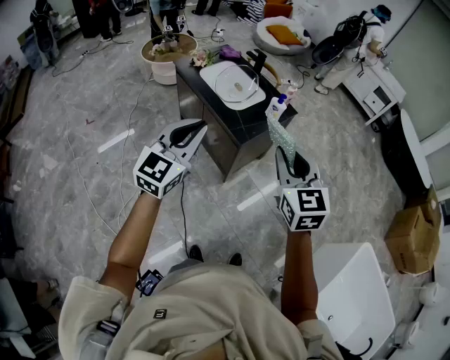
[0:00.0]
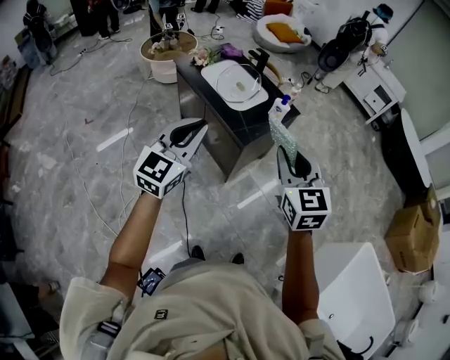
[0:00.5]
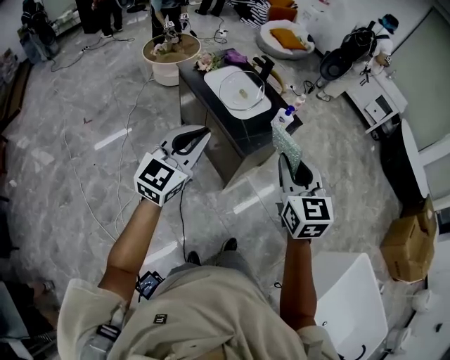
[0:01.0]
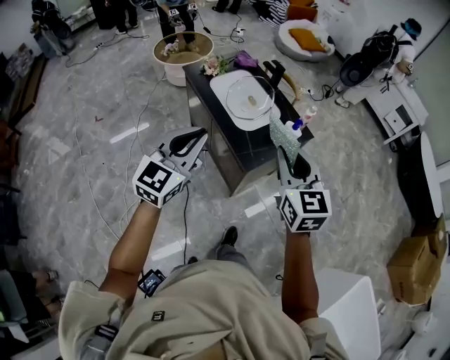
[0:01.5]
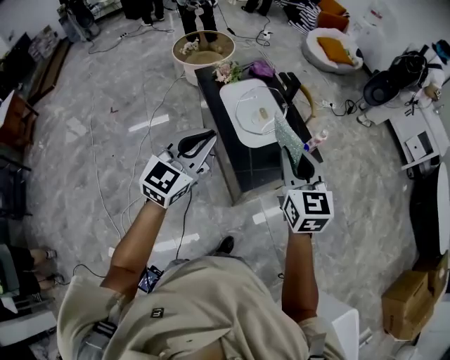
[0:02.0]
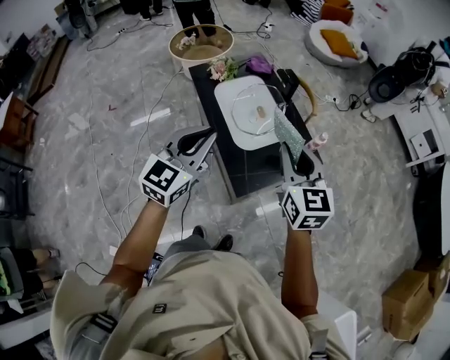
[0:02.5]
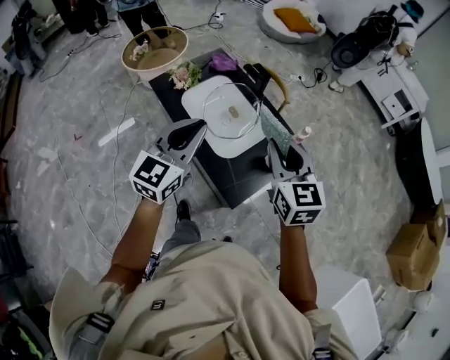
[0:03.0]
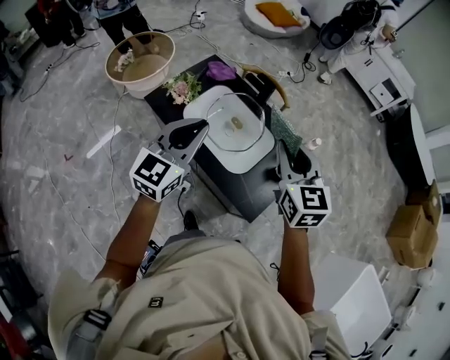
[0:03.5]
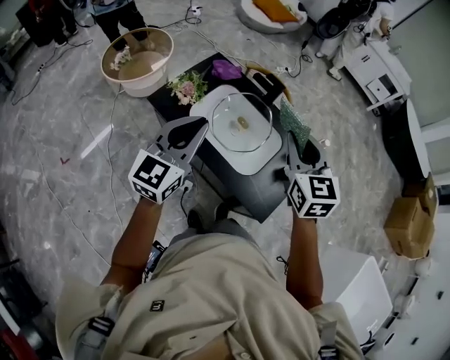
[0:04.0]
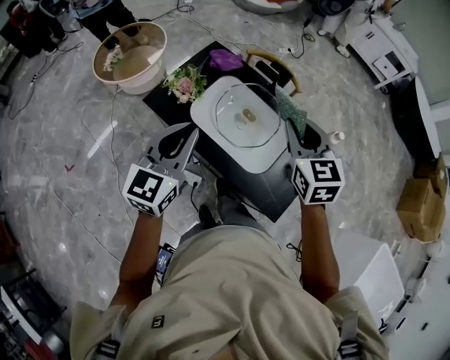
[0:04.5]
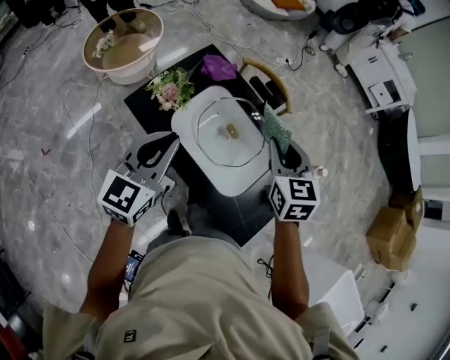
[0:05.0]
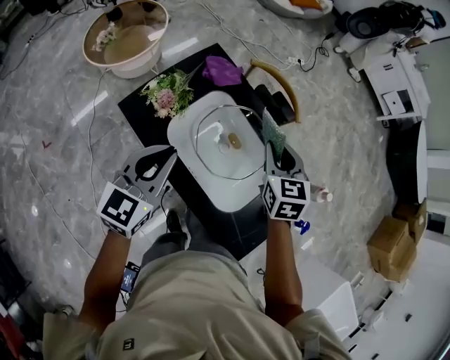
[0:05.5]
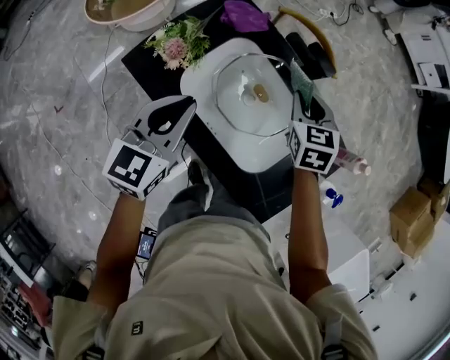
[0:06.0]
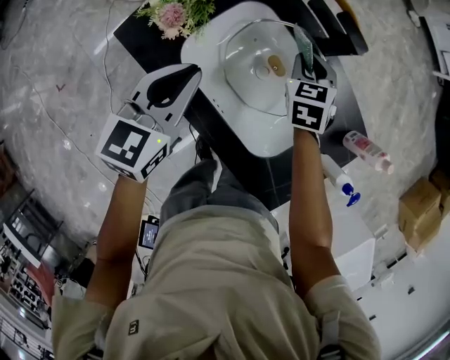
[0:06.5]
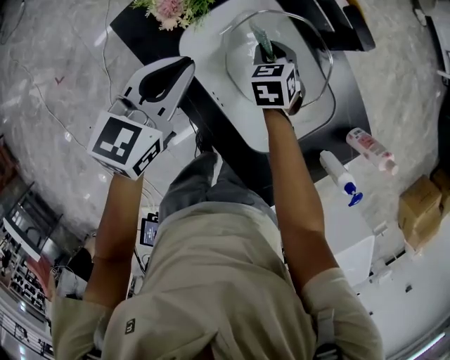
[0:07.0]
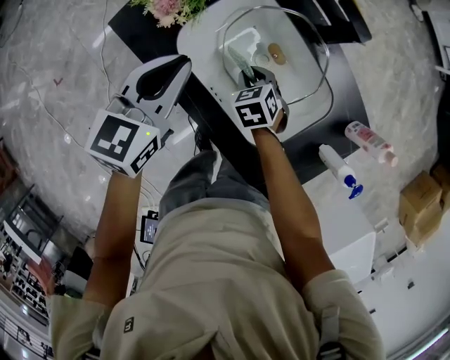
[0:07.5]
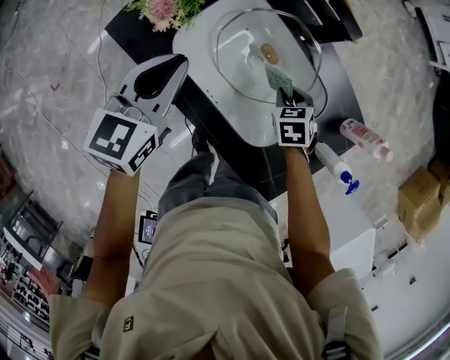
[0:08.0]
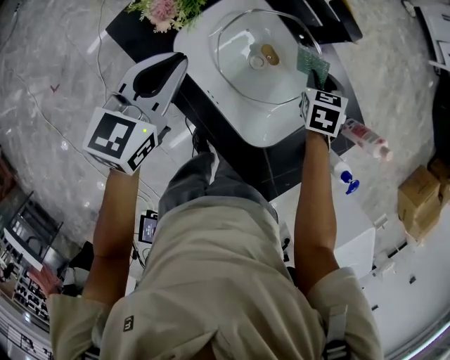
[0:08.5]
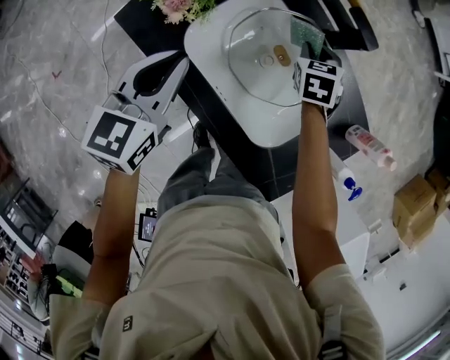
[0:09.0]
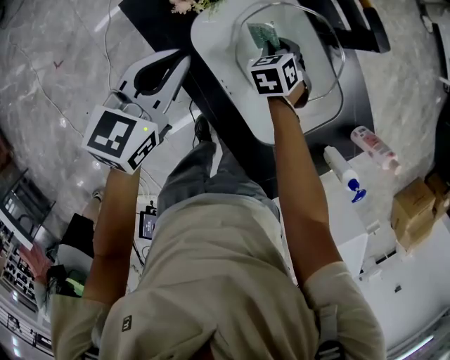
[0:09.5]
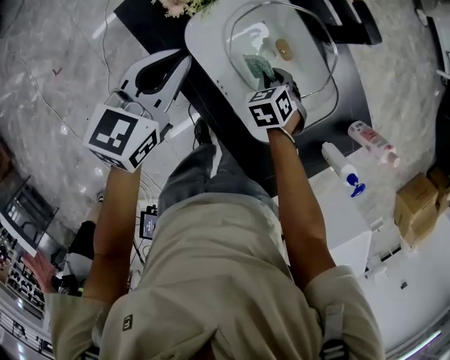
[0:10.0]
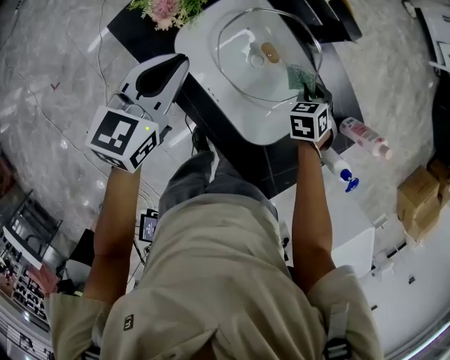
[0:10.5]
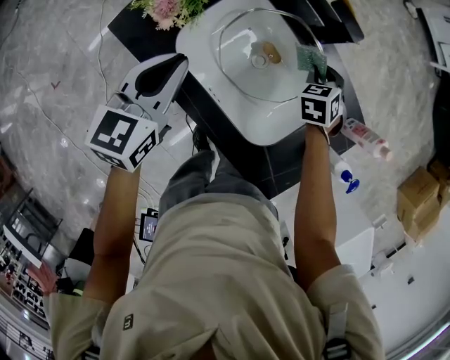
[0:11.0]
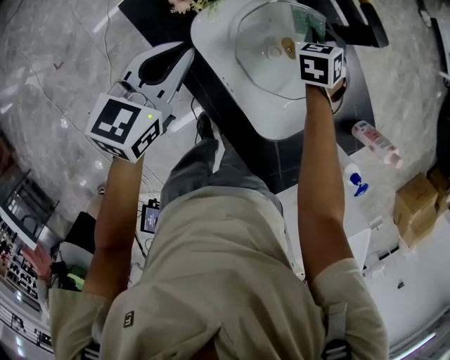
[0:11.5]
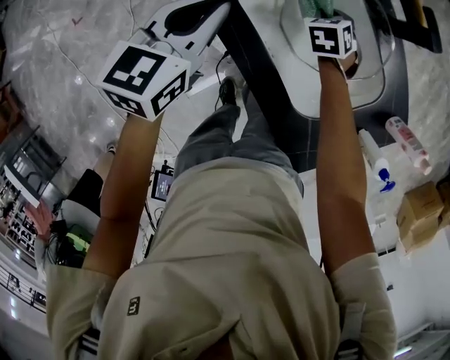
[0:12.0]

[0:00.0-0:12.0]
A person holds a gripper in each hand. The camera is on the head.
0:00.0 to 0:02.0: Both grippers travel together forward, some 30 cm.
0:02.0 to 0:04.0: Both grippers travel together forward and to the left, about 30 cm. The right gripper rotates about 30 degrees, while the left gripper swivels about 20 degrees.
0:04.0 to 0:06.0: Both grippers travel together downward and forward, about 30 cm. The left gripper turns by some 20 degrees; the right gripper rotates approximately 20 degrees.
0:06.0 to 0:08.0: The left gripper is displaced downward by approximately 5 cm, while the right gripper shifts some 20 cm downward and backward, and changes its angle by about 20 degrees.
0:08.0 to 0:10.0: The right gripper swings left and right, approximately 20 cm each way, with 2 reversals.
0:10.0 to 0:12.0: The right gripper moves forward, approximately 10 cm, and moves roughly 15 cm to the right and comes back.

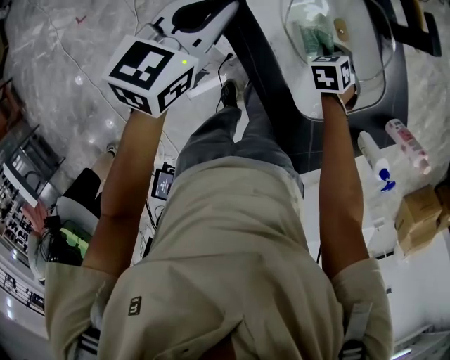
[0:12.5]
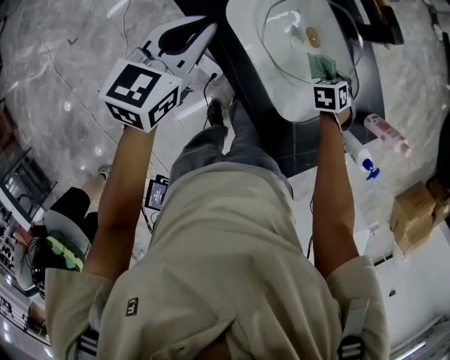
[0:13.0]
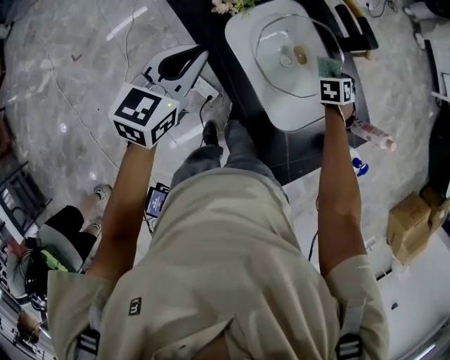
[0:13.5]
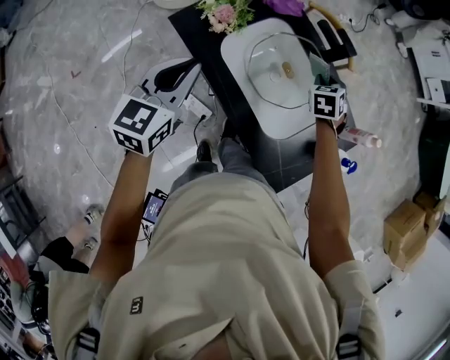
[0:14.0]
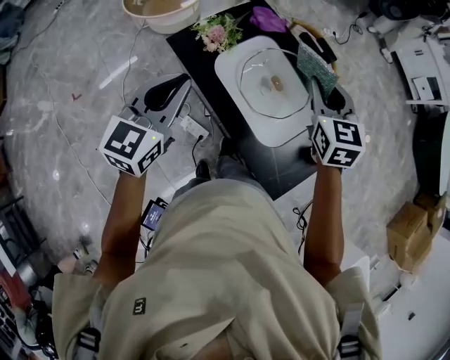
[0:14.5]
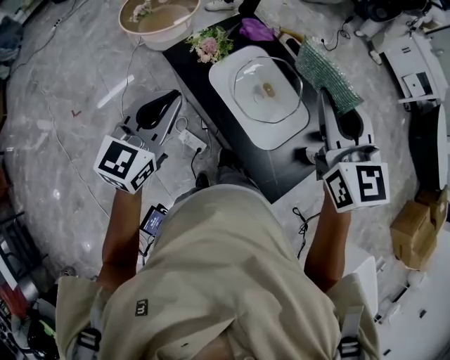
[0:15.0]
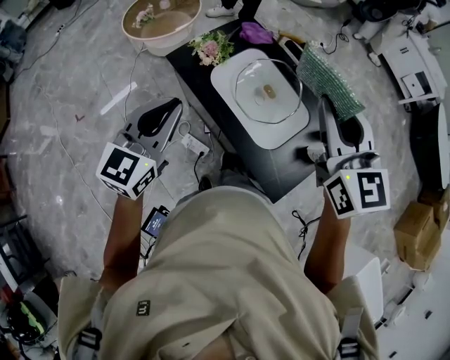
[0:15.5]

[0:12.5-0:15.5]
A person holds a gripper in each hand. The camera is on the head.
0:12.5 to 0:14.0: The right gripper shifts roughly 20 cm upward, and rotates roughly 20 degrees. Meanwhile the left gripper travels upward and backward by about 15 cm.
0:14.0 to 0:15.5: The right gripper is displaced upward and backward by approximately 40 cm, and tips its fingers upward by roughly 40 degrees. The left gripper shifts some 15 cm upward and backward.

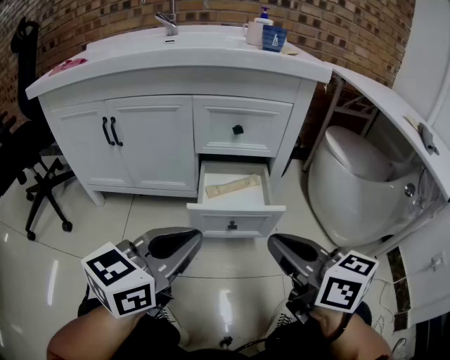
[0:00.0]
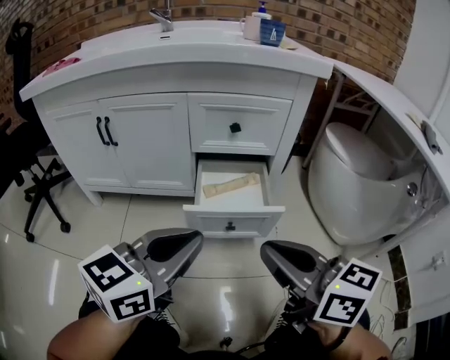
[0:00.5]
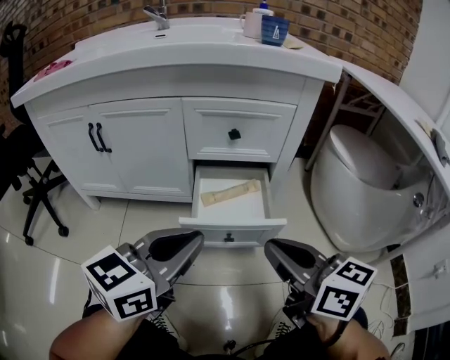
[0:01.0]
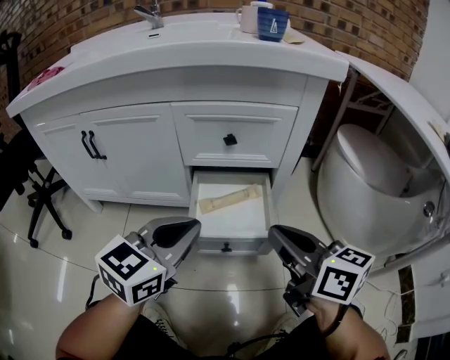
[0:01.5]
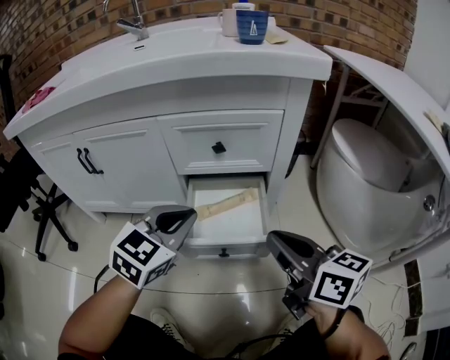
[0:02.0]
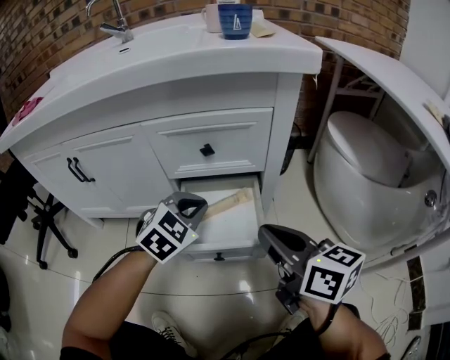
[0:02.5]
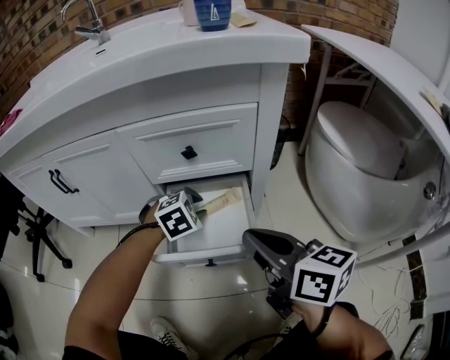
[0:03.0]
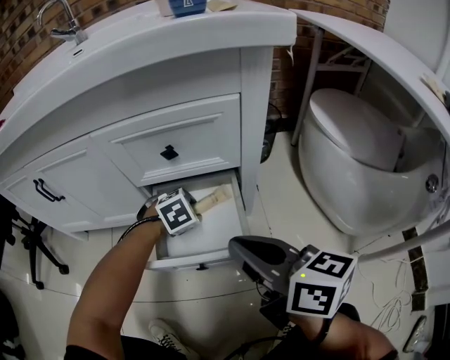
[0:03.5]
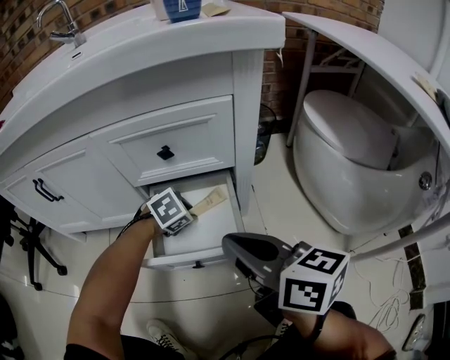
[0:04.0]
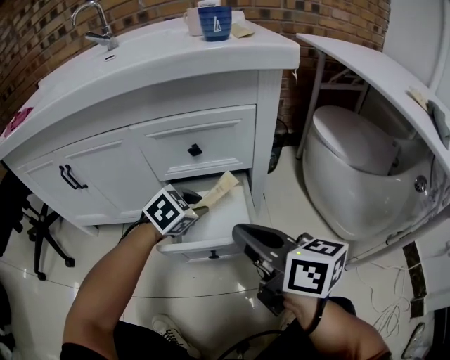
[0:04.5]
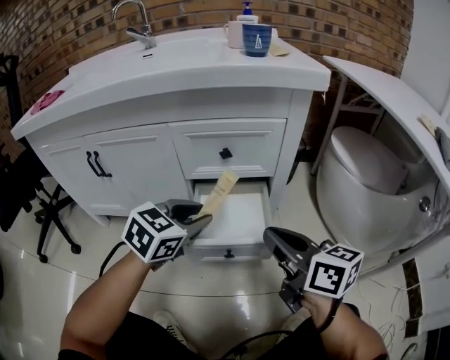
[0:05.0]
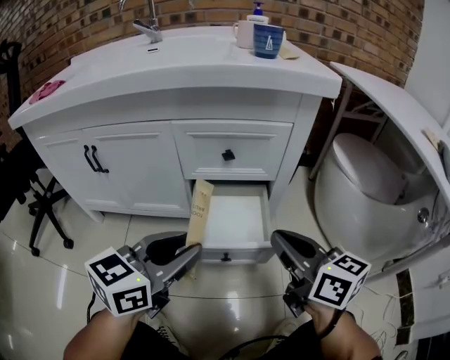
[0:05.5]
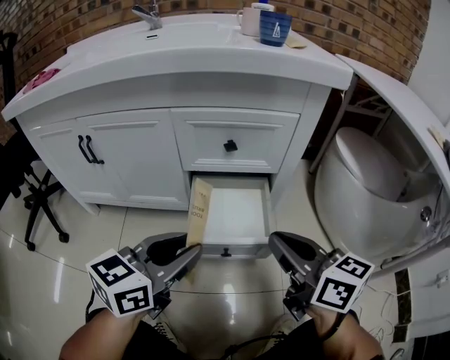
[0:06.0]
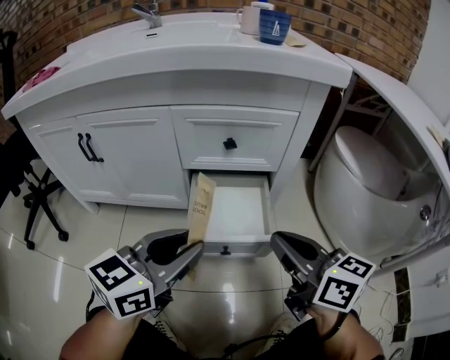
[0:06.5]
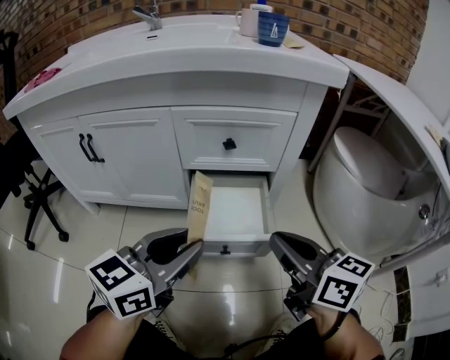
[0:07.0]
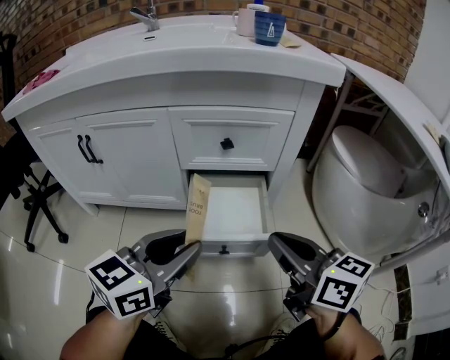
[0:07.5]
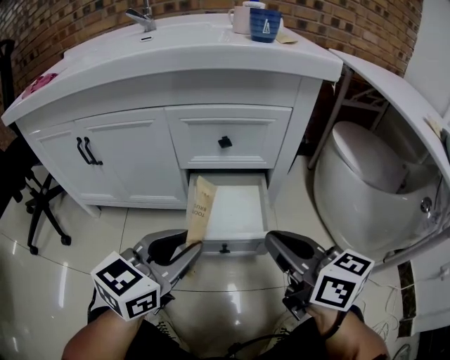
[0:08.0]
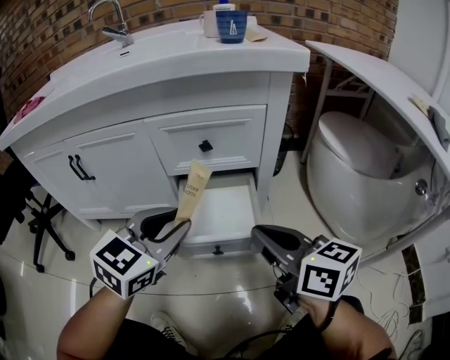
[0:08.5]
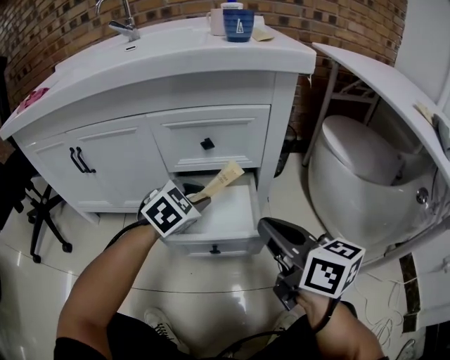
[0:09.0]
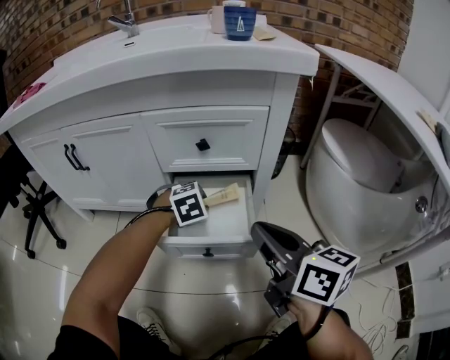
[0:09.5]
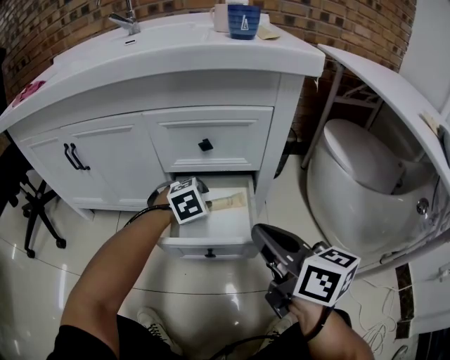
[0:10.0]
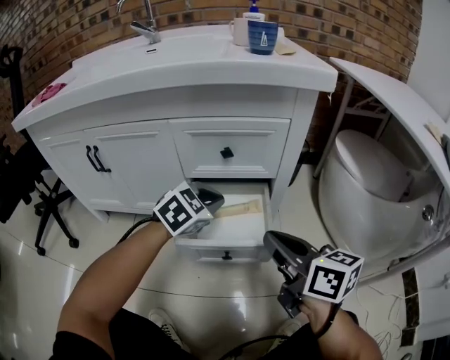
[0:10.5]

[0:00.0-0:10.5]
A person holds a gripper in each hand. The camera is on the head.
0:00.0 to 0:02.0: The right gripper shifts about 15 cm forward and to the right. The left gripper heads forward, covering approximately 20 cm, and swivels roughly 30 degrees.
0:02.0 to 0:04.0: The left gripper goes roughly 25 cm downward and forward, points its fingers approximately 40 degrees further downward, and opens.
0:04.0 to 0:06.5: The left gripper heads upward and backward, covering roughly 30 cm, and tips its fingers upward by roughly 60 degrees.
0:06.5 to 0:08.5: The left gripper swivels roughly 30 degrees.
0:08.5 to 0:10.5: The left gripper heads forward and downward, covering roughly 15 cm, swivels roughly 20 degrees, and closes its fingers.

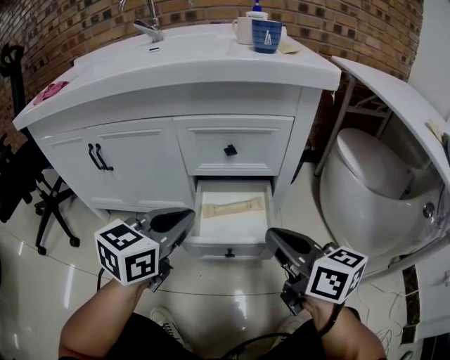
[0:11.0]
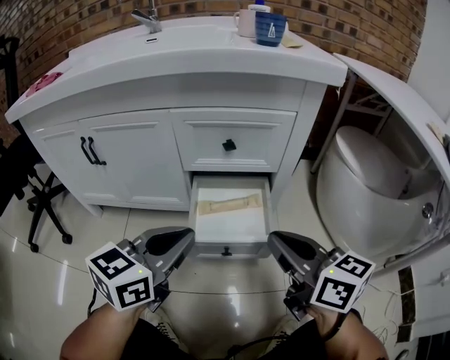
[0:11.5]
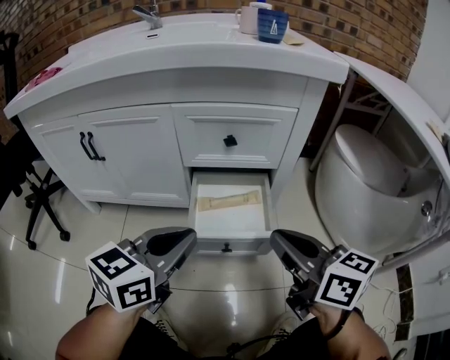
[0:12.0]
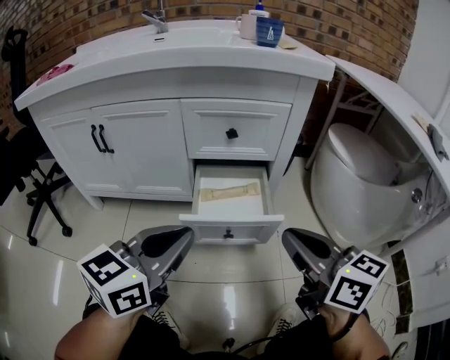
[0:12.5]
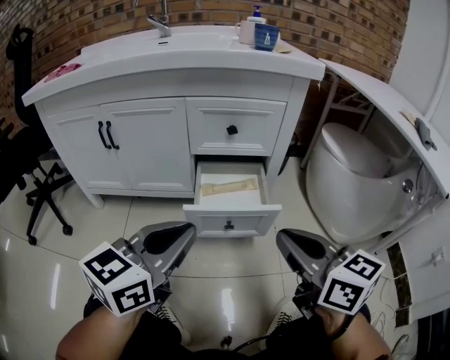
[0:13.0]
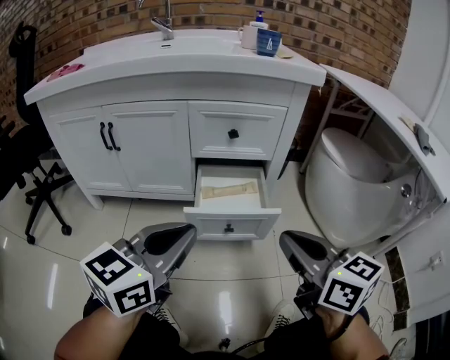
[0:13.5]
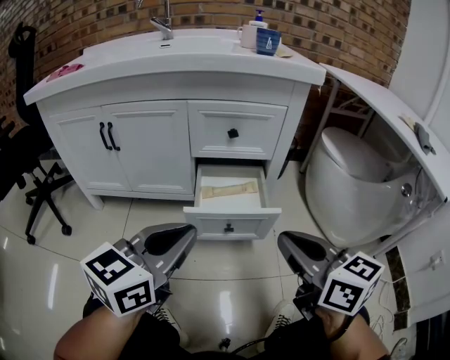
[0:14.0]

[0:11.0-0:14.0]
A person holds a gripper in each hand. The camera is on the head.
0:11.0 to 0:12.5: The grippers both shift backward by some 10 cm.
0:12.5 to 0:14.0: There are only small adjustments of the grippers.
